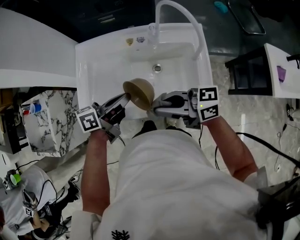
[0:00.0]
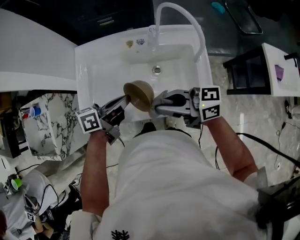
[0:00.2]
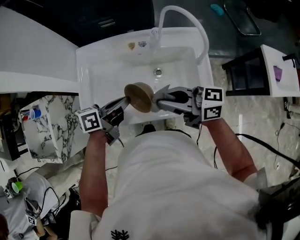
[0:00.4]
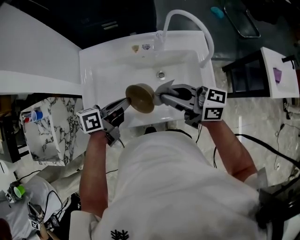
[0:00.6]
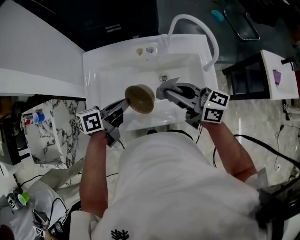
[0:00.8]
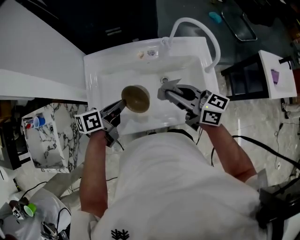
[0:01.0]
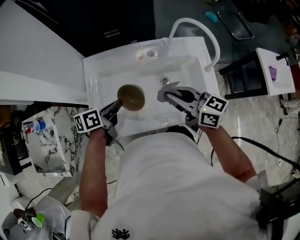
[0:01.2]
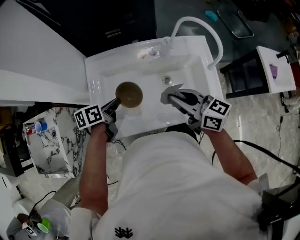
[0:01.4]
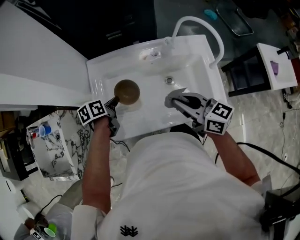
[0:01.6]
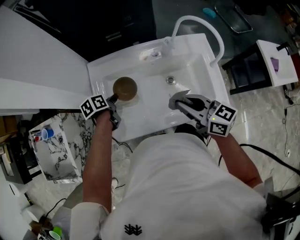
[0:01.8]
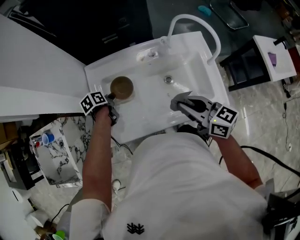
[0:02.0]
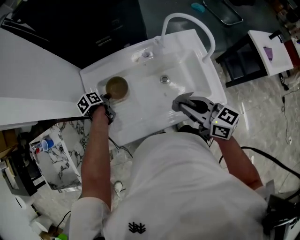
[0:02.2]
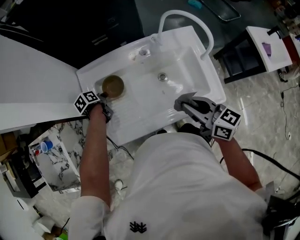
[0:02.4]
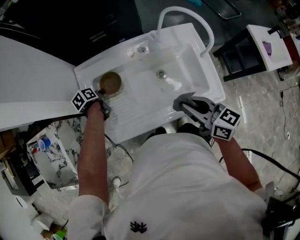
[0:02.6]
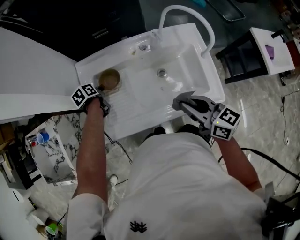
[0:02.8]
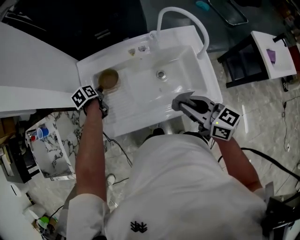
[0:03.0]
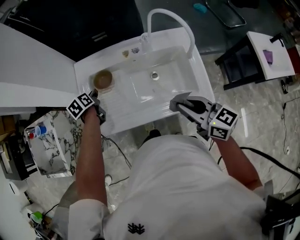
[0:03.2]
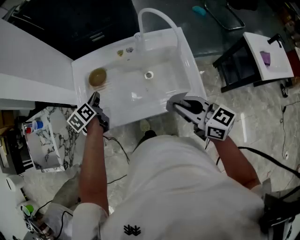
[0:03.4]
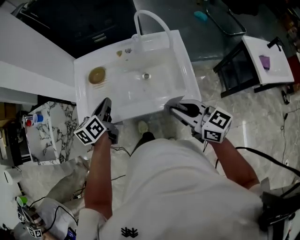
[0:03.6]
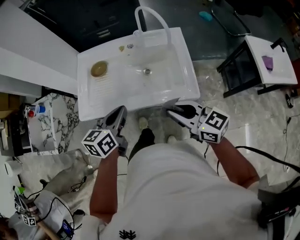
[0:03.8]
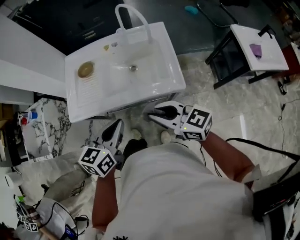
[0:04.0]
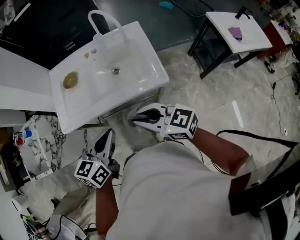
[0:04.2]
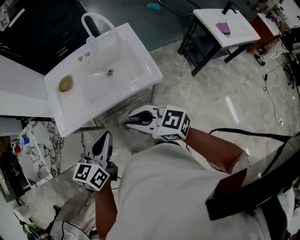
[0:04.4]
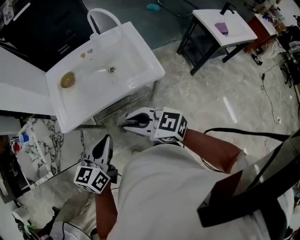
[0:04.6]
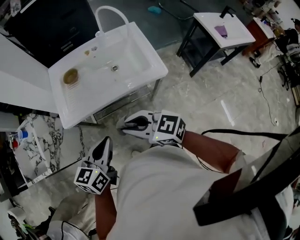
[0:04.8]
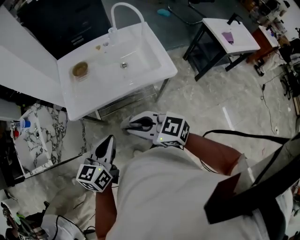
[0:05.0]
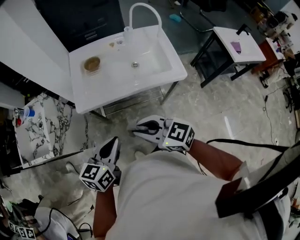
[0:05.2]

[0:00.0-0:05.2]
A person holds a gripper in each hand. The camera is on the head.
0:00.0 to 0:01.8: The left gripper shifts by about 25 cm, and tips its fingers downward by approximately 40 degrees; the right gripper ends up some 5 cm from where it was, and turns by some 40 degrees.
0:01.8 to 0:03.4: The left gripper heads upward and backward, covering approximately 10 cm, and changes its angle by approximately 20 degrees; the right gripper heads to the right and backward, covering roughly 15 cm.
0:03.4 to 0:05.2: The right gripper is displaced to the left and backward by some 30 cm; the left gripper travels backward by approximately 40 cm, and changes its angle by roughly 40 degrees.

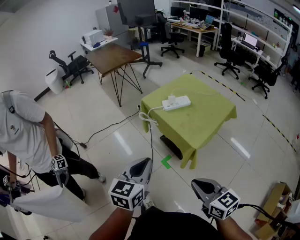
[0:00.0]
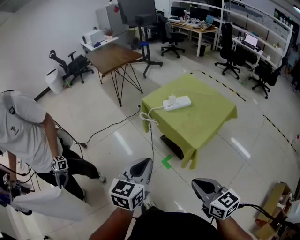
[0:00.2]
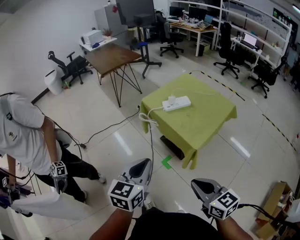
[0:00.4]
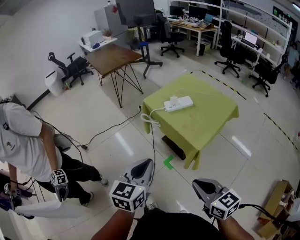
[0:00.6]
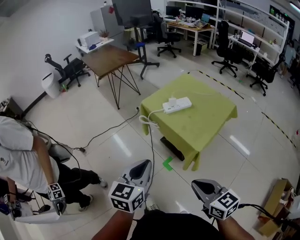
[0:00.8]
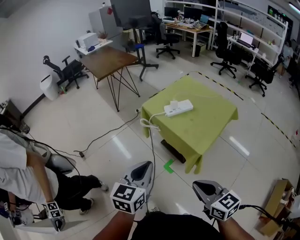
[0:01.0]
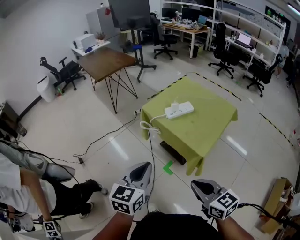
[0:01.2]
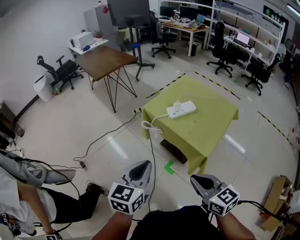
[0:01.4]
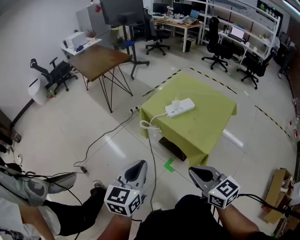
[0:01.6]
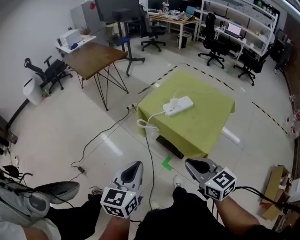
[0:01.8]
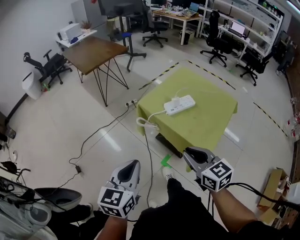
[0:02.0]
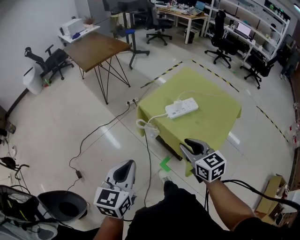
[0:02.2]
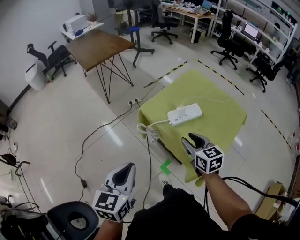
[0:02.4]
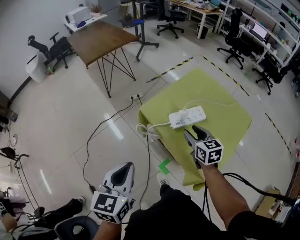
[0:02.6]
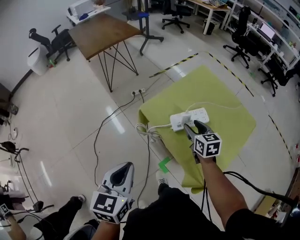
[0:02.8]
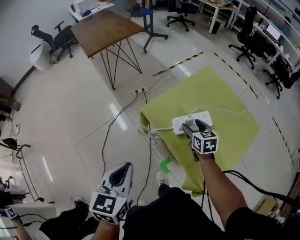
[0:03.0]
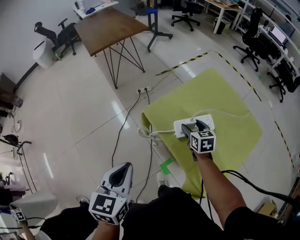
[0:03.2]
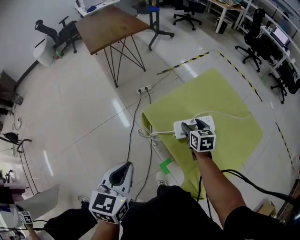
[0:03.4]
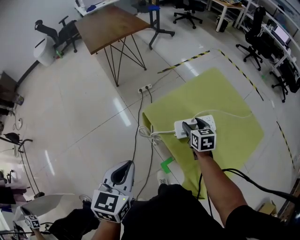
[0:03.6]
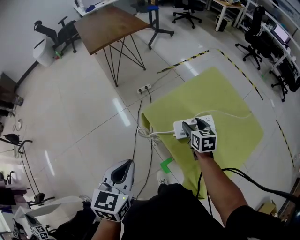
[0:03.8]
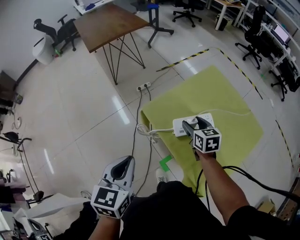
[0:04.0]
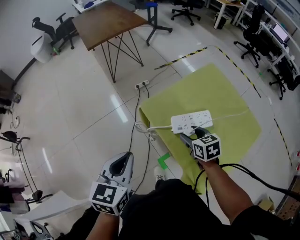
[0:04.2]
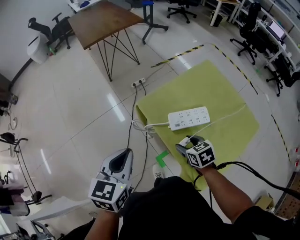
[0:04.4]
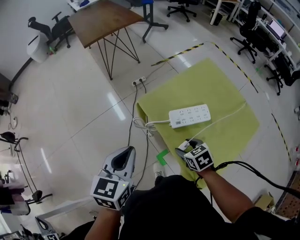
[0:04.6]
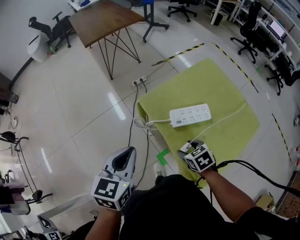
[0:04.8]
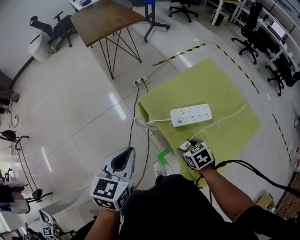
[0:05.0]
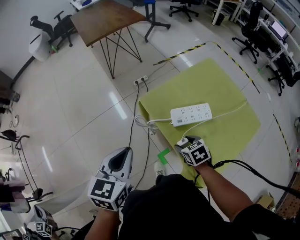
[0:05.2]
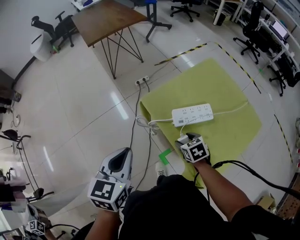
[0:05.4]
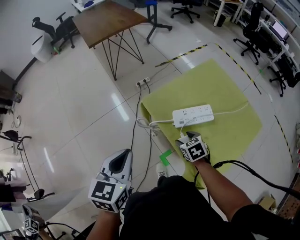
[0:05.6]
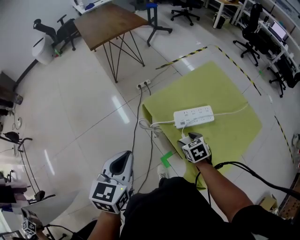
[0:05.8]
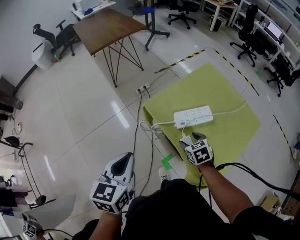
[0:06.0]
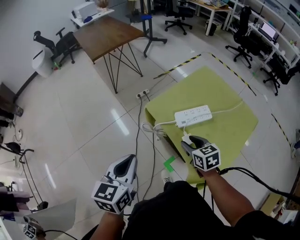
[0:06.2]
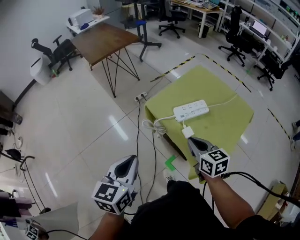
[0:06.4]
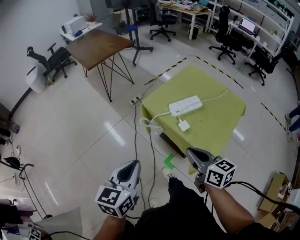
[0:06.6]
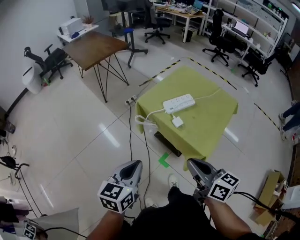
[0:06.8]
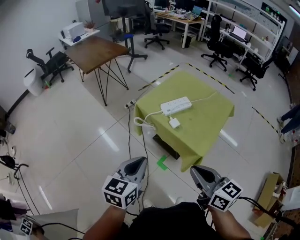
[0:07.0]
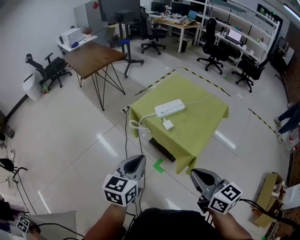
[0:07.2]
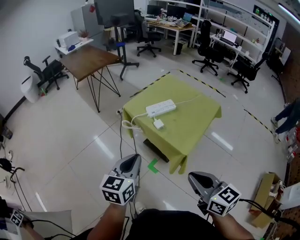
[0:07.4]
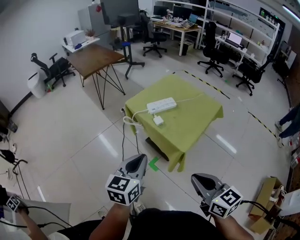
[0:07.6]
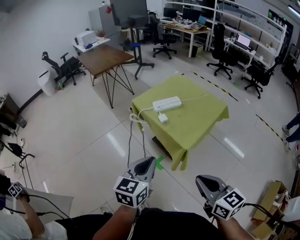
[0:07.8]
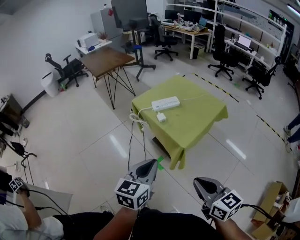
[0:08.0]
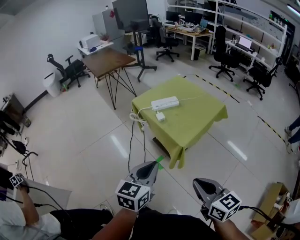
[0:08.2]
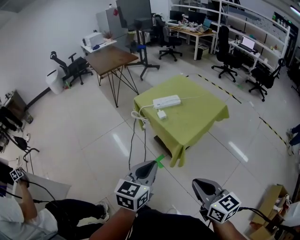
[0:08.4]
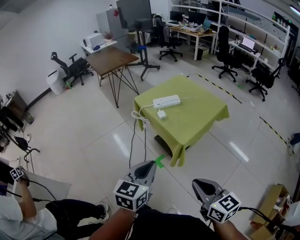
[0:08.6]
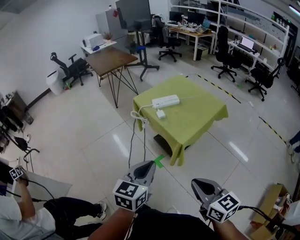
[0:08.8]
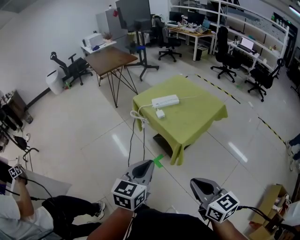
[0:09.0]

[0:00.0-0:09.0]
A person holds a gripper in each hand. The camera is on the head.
0:00.0 to 0:01.6: The two grippers go about 15 cm forward and to the left.
0:01.6 to 0:03.0: The left gripper shifts approximately 20 cm forward; the right gripper goes approximately 50 cm forward and downward, rotates about 20 degrees, and opens its fingers.
0:03.0 to 0:04.4: The right gripper heads backward, covering about 10 cm, and rotates some 30 degrees.
0:04.4 to 0:06.0: There are only small adjustments of the grippers.
0:06.0 to 0:07.6: The right gripper shifts about 50 cm backward and upward, points its fingers approximately 40 degrees further upward, and closes up. Meanwhile the left gripper shifts some 25 cm backward and to the right.
0:07.6 to 0:09.0: The left gripper moves backward and to the right, about 15 cm; the right gripper shifts some 10 cm backward.

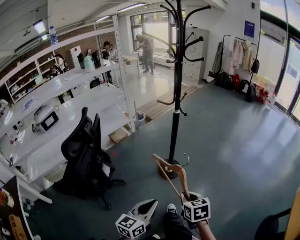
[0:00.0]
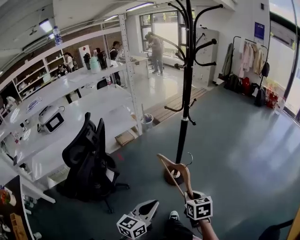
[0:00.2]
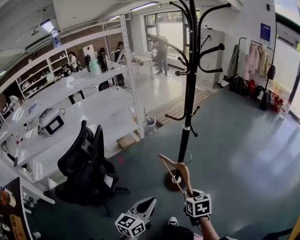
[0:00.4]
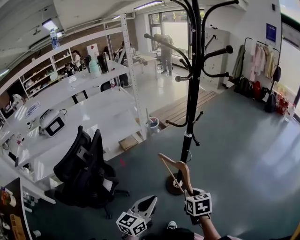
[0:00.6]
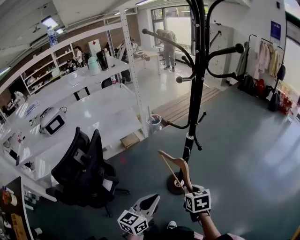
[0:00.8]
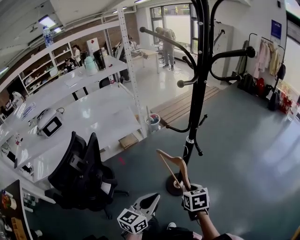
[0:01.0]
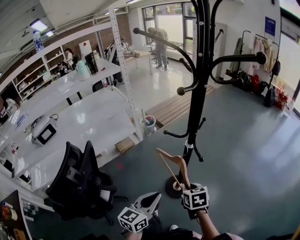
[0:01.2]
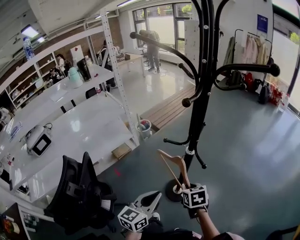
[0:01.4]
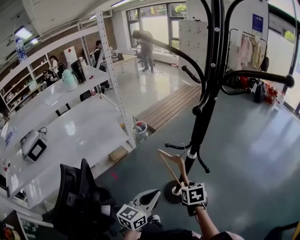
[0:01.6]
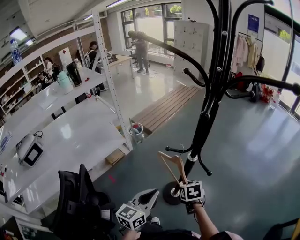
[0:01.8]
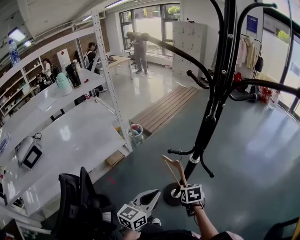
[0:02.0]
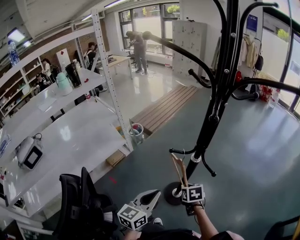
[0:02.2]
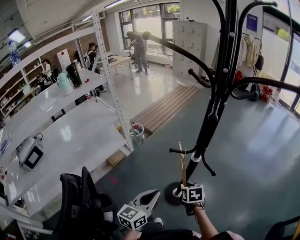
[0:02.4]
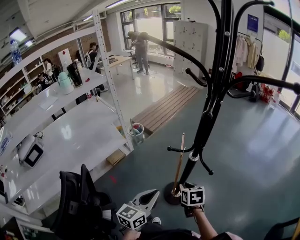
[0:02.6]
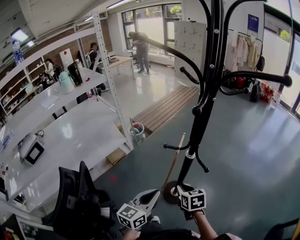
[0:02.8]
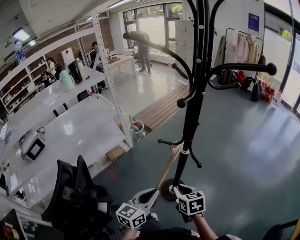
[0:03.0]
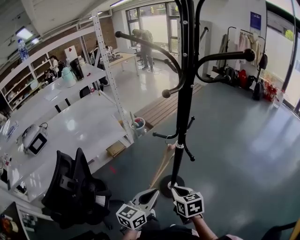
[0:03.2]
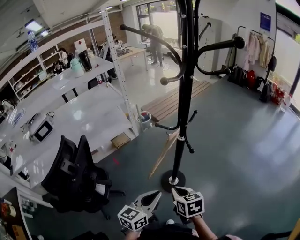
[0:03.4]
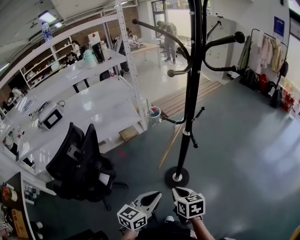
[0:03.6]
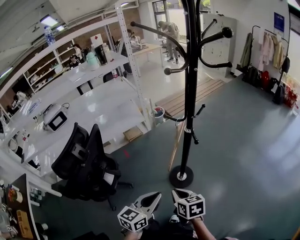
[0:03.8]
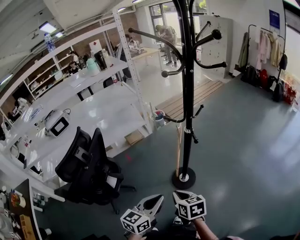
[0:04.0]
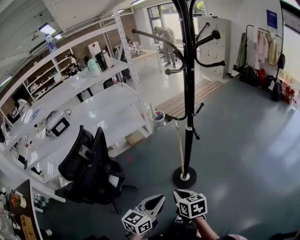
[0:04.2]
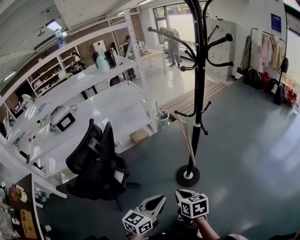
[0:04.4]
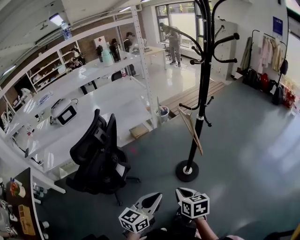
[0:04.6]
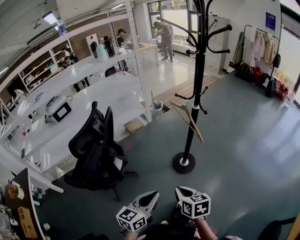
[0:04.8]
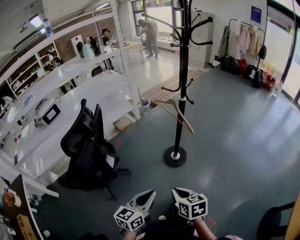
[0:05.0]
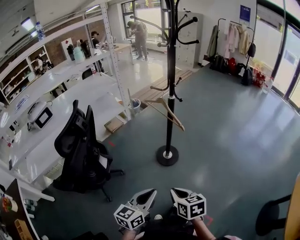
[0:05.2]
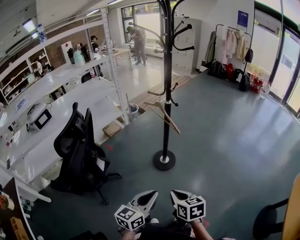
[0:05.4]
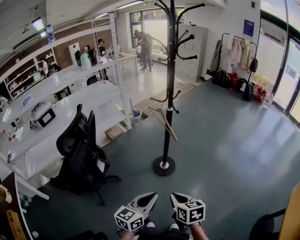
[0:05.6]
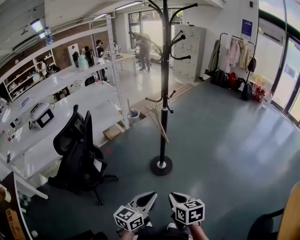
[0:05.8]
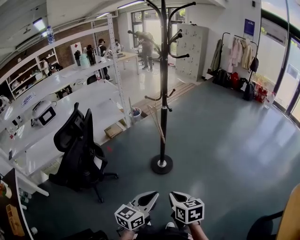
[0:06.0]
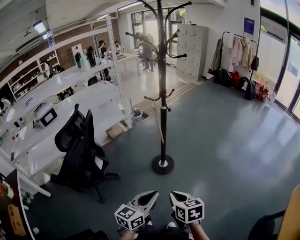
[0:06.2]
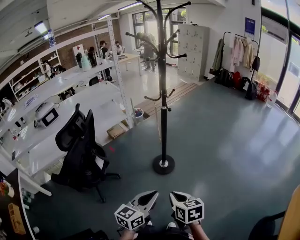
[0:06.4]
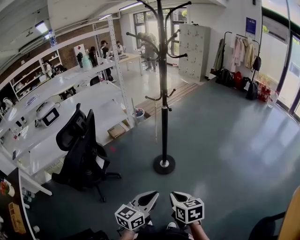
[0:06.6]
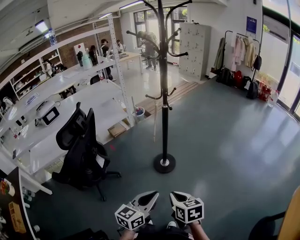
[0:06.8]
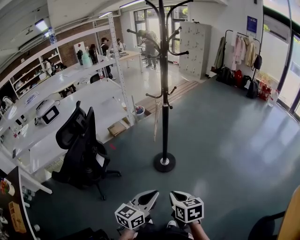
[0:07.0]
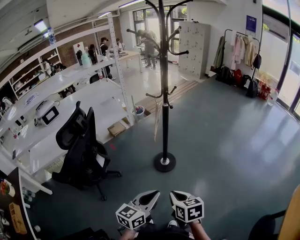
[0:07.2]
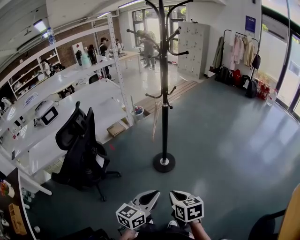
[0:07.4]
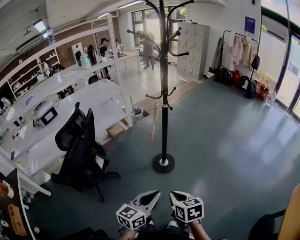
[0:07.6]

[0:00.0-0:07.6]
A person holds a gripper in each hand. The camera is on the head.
0:00.0 to 0:01.6: Both grippers are carried forward, roughly 50 cm.
0:01.6 to 0:03.0: The right gripper moves backward, about 5 cm.
0:03.0 to 0:04.6: Both grippers travel together backward, about 30 cm.
0:04.6 to 0:06.0: The two grippers go some 20 cm backward and to the right.
0:06.0 to 0:07.6: The grippers make only small movements.

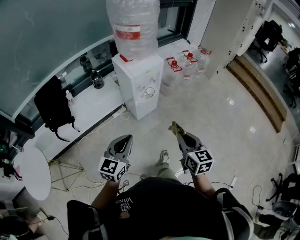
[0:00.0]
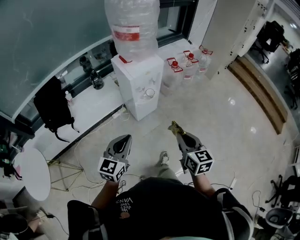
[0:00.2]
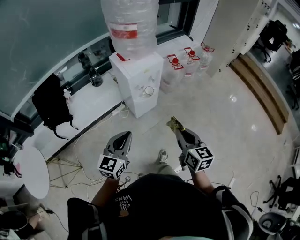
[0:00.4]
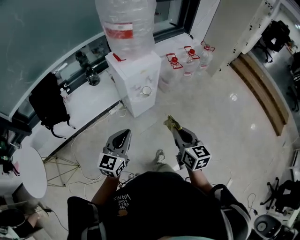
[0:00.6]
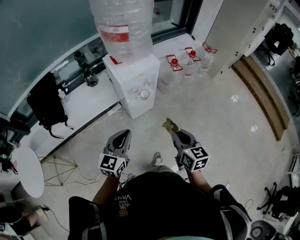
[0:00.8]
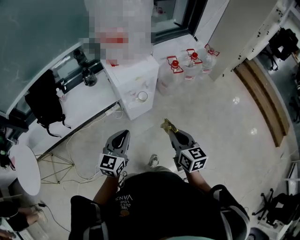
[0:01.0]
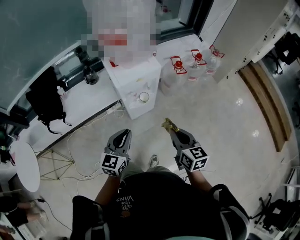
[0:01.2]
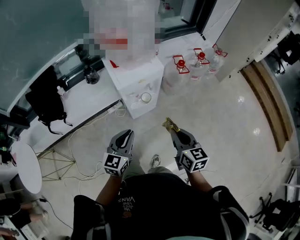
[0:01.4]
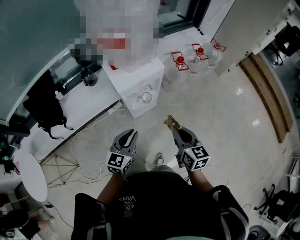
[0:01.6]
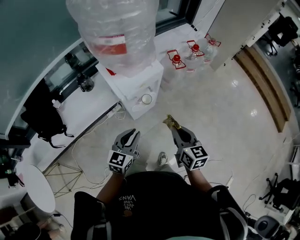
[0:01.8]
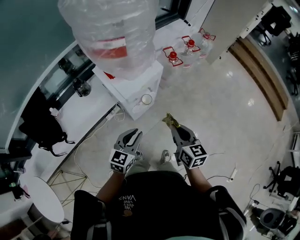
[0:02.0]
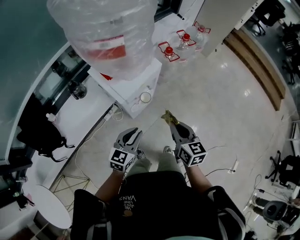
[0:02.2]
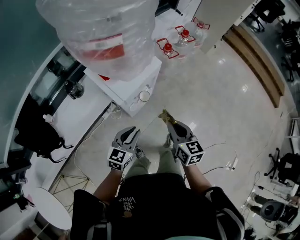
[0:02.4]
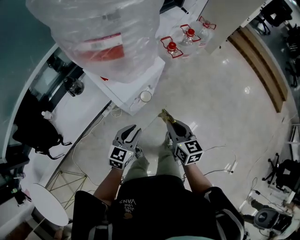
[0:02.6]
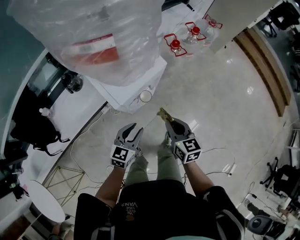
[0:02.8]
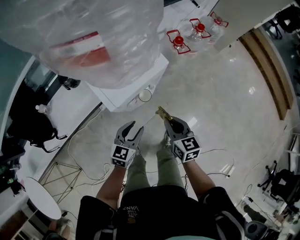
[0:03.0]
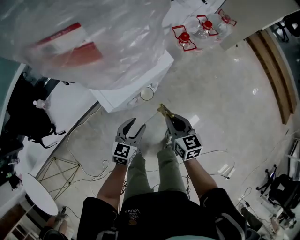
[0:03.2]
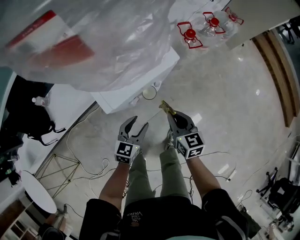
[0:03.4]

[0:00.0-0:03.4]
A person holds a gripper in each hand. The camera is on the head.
0:00.0 to 0:01.6: Both grippers travel together forward, approximately 25 cm.
0:01.6 to 0:03.4: Both grippers travel together downward and forward, roughly 30 cm. The left gripper opens its fingers.
